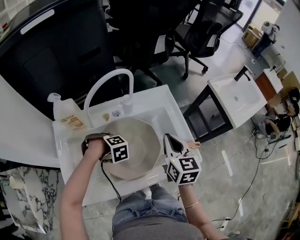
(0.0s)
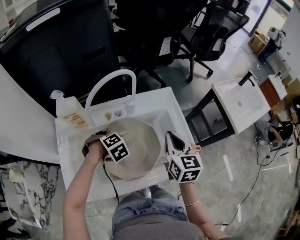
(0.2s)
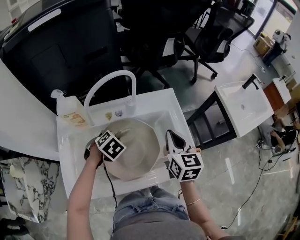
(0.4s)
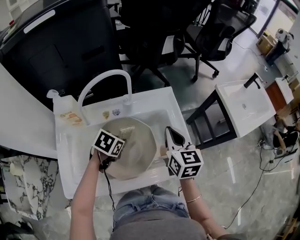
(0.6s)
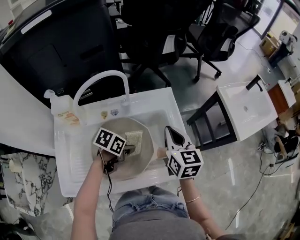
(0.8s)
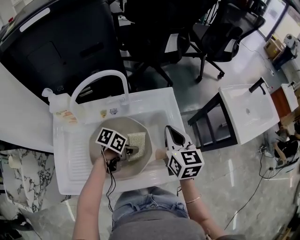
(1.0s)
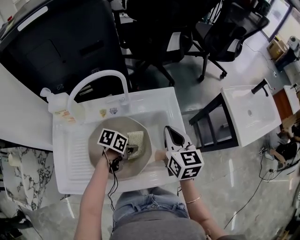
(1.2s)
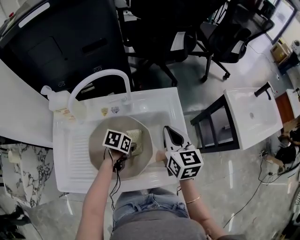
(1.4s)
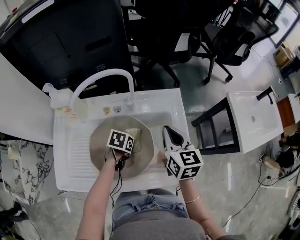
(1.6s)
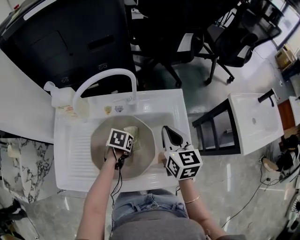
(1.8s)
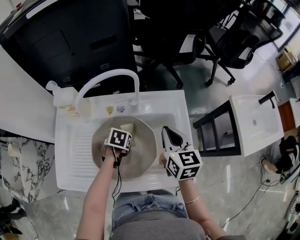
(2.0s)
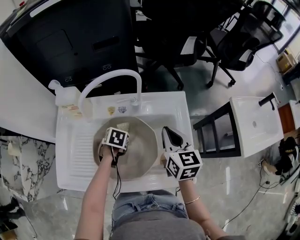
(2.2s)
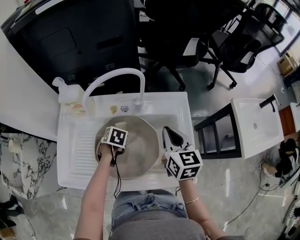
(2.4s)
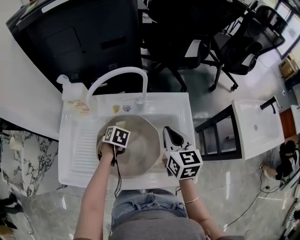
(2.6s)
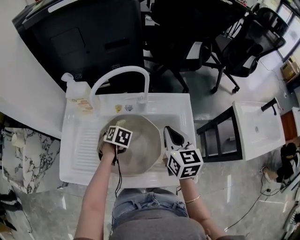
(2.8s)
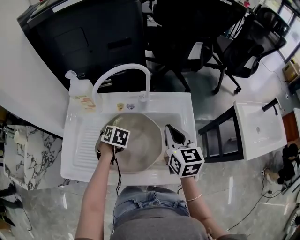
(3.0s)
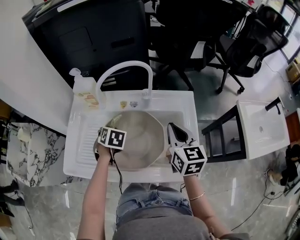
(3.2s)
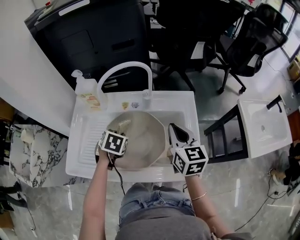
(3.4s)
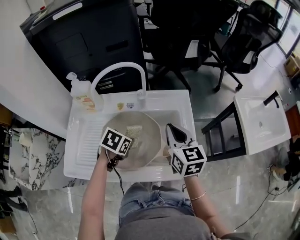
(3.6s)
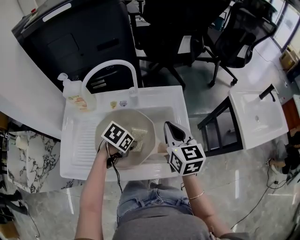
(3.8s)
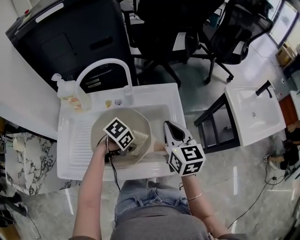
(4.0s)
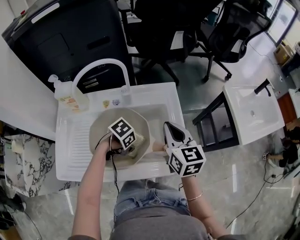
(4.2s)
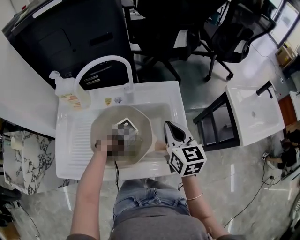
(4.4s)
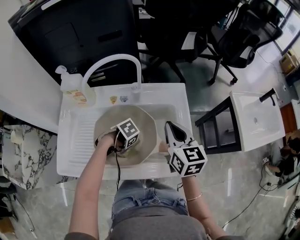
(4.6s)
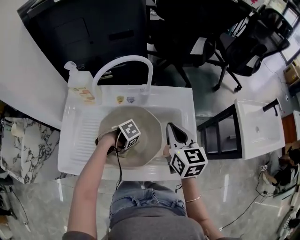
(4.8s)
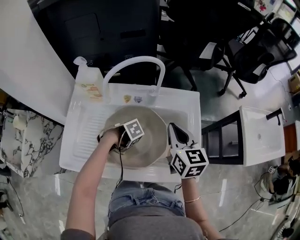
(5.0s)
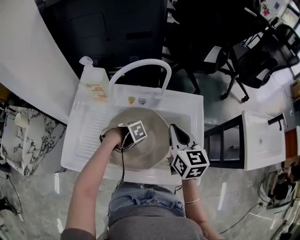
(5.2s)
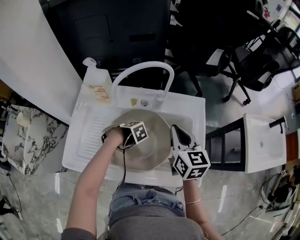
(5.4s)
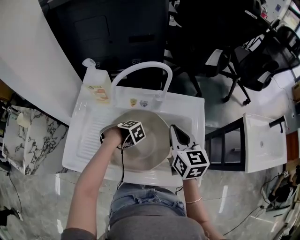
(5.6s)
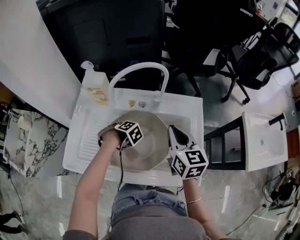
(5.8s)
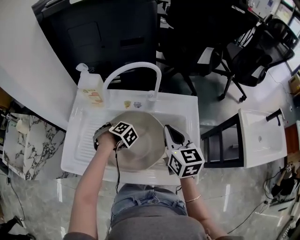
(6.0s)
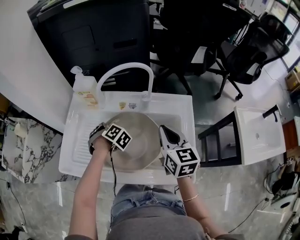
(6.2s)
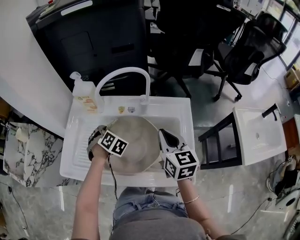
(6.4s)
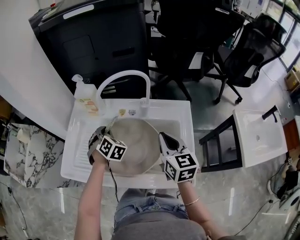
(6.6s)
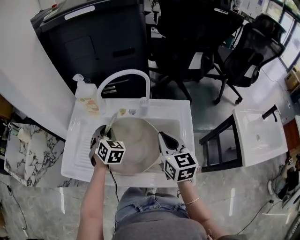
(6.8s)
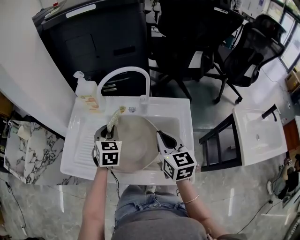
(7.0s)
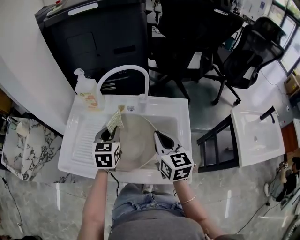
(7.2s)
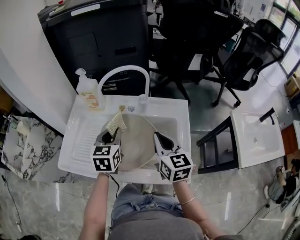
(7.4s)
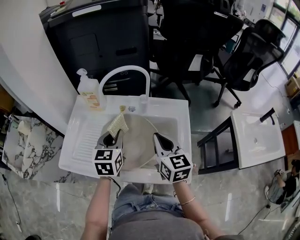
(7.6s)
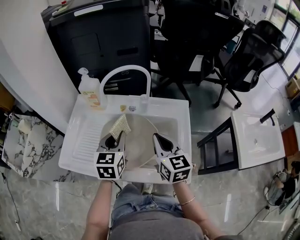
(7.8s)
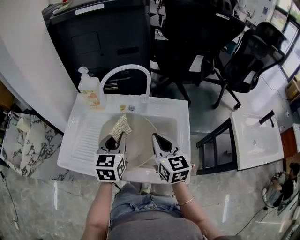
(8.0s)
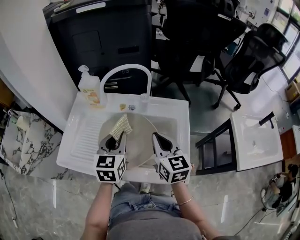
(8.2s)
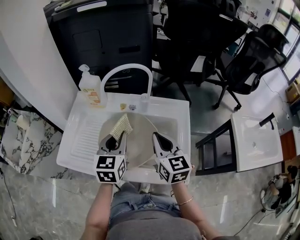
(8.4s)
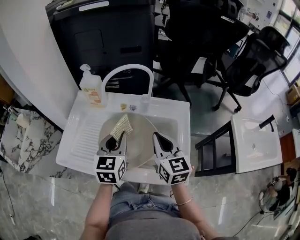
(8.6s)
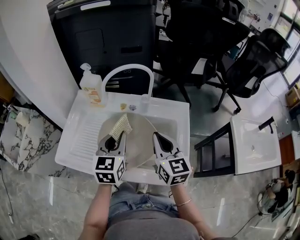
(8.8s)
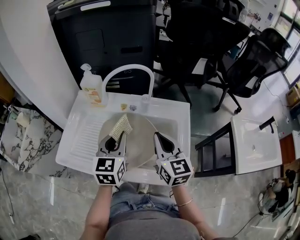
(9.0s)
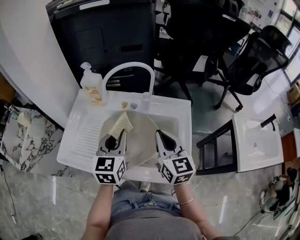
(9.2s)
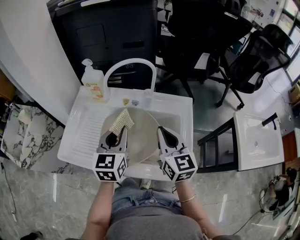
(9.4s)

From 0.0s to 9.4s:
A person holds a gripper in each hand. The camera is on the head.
From 0.0s to 1.6s: The left gripper changes place by roughly 15 cm, and rotates around the line of its fingers by roughly 80 degrees, counterclockwise from behind. The right gripper shifts by about 10 cm.
From 1.6s to 3.2s: The left gripper shifts by approximately 15 cm, and rotates roughly 40 degrees.
From 3.2s to 4.8s: The left gripper moves roughly 15 cm, and swivels some 60 degrees.
From 4.8s to 6.2s: The left gripper ends up approximately 15 cm from where it was, and changes its angle by approximately 50 degrees.
From 6.2s to 7.8s: The left gripper goes about 20 cm upward, backward and to the right, and tips its fingers upward by roughly 40 degrees.
From 7.8s to 9.4s: The grippers stay close to where they were, moving slightly.

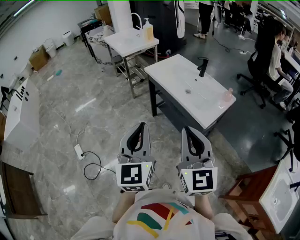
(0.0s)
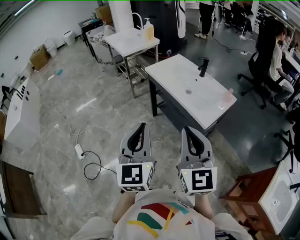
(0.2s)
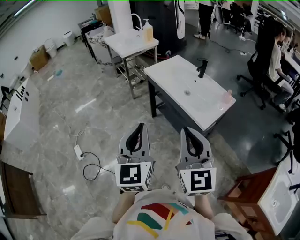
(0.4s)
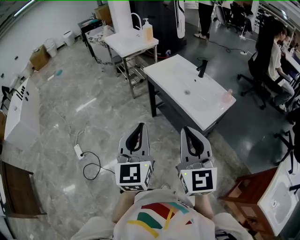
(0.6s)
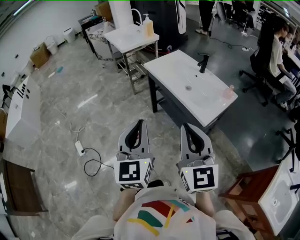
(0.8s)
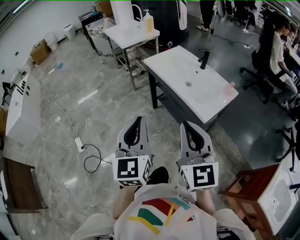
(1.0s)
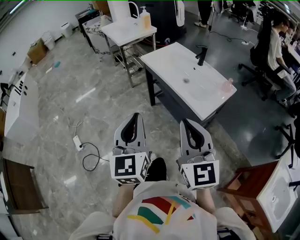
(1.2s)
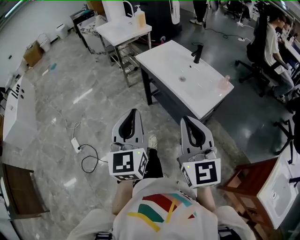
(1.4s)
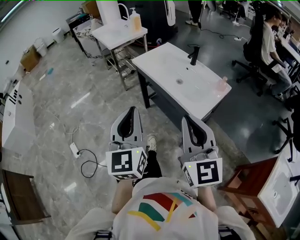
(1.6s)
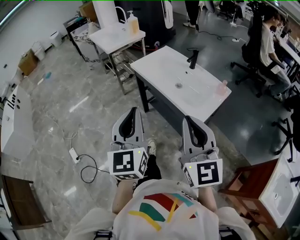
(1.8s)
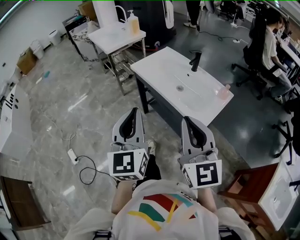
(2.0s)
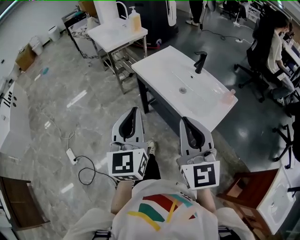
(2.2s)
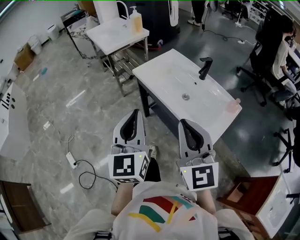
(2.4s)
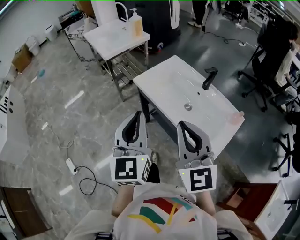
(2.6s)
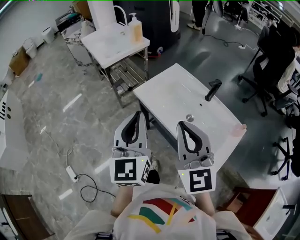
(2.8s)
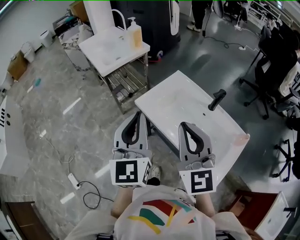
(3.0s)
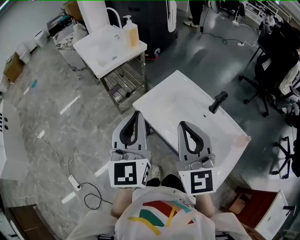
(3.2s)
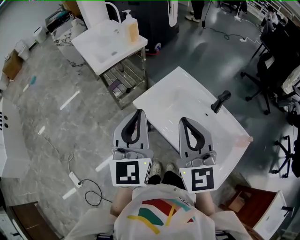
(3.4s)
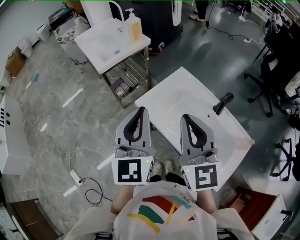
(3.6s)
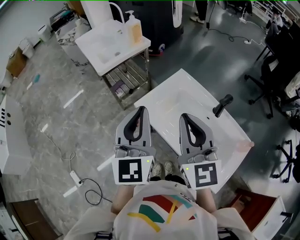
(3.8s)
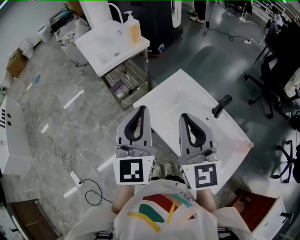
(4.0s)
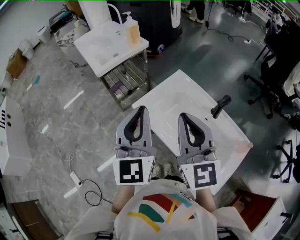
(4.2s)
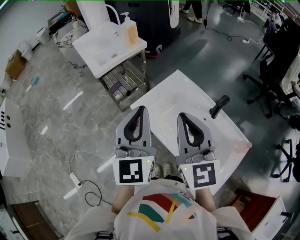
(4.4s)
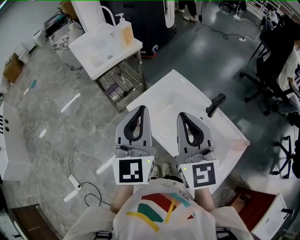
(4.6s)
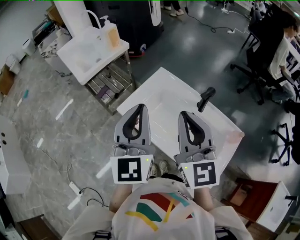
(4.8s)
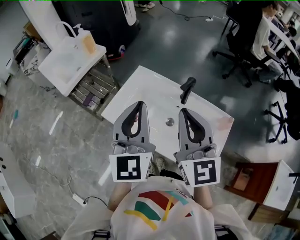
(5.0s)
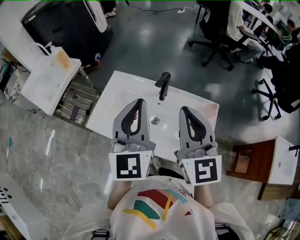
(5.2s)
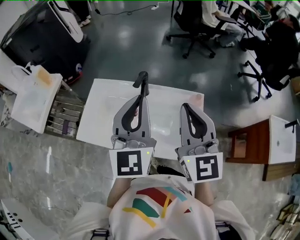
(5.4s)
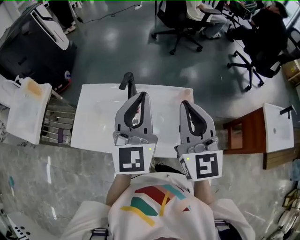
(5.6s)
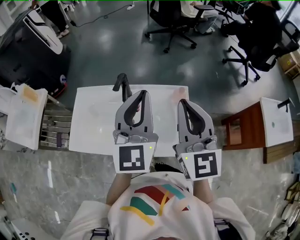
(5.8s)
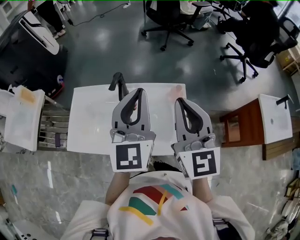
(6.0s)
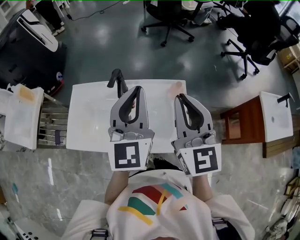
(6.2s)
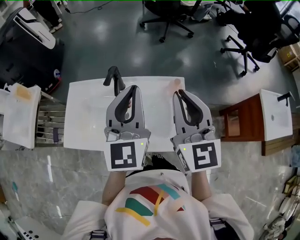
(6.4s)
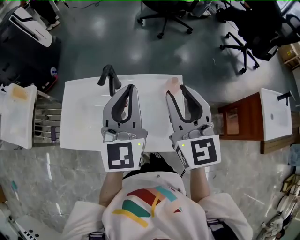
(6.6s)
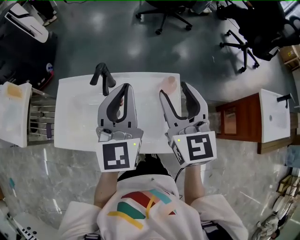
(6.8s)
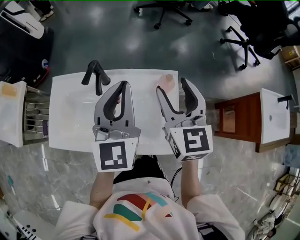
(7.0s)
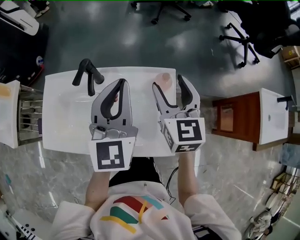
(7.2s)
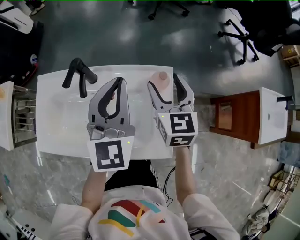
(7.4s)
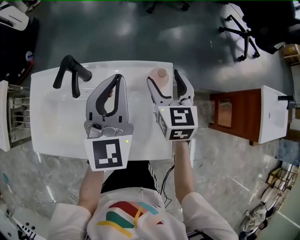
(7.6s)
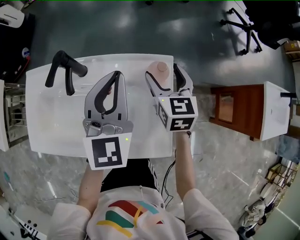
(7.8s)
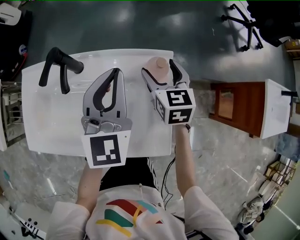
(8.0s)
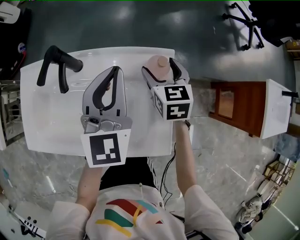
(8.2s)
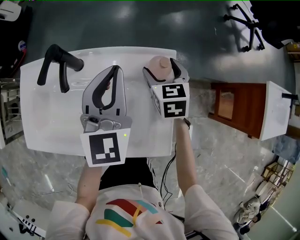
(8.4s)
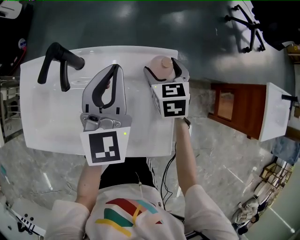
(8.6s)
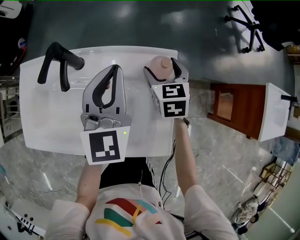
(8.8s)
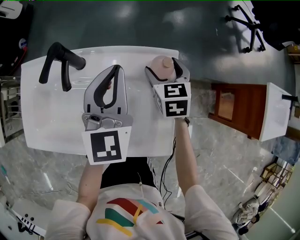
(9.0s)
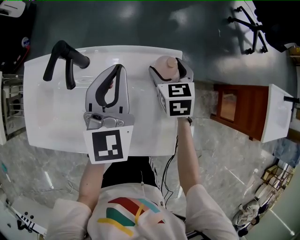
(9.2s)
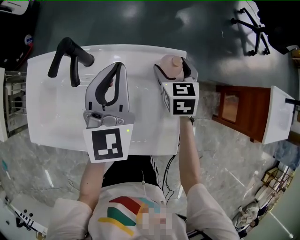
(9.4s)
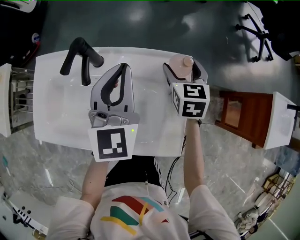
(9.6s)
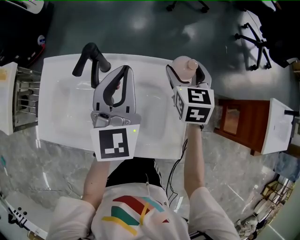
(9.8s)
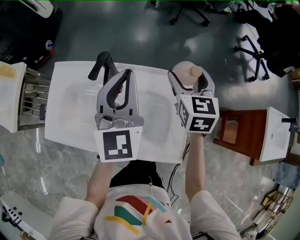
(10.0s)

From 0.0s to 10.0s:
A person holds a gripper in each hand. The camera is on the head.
From 0.0s to 1.4s: The grippers move only a little.
From 1.4s to 2.8s: The two grippers go approximately 35 cm forward.
From 2.8s to 4.2s: The two grippers go about 15 cm forward.
From 4.2s to 5.8s: The left gripper ends up some 35 cm from where it was, and changes its angle by approximately 50 degrees, while the right gripper ends up about 30 cm from where it was, and rotates roughly 50 degrees.
From 5.8s to 7.2s: The left gripper goes about 15 cm downward and forward, while the right gripper travels downward and forward by roughly 20 cm, and opens up.
From 7.2s to 8.6s: The left gripper travels downward by some 10 cm; the right gripper is displaced downward by approximately 20 cm, and swivels about 20 degrees.
From 8.6s to 10.0s: The left gripper shifts some 10 cm upward and to the left, while the right gripper is displaced upward by roughly 15 cm.

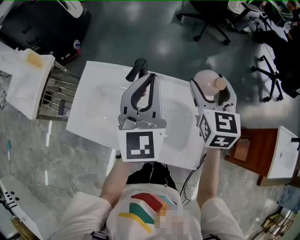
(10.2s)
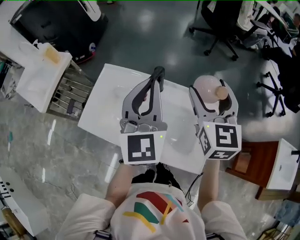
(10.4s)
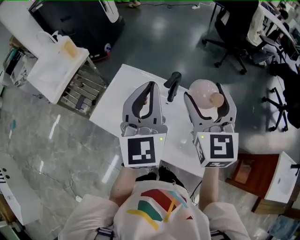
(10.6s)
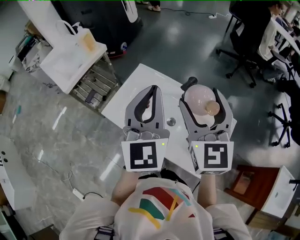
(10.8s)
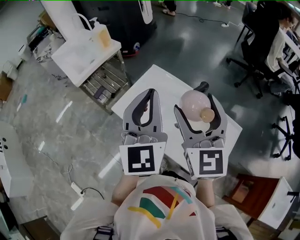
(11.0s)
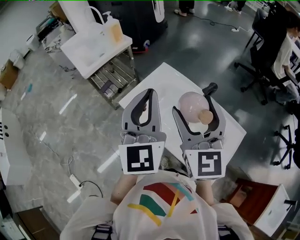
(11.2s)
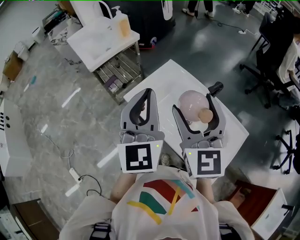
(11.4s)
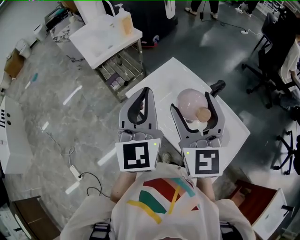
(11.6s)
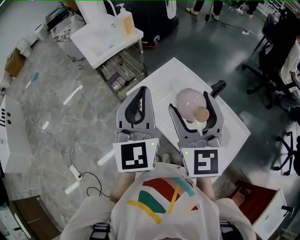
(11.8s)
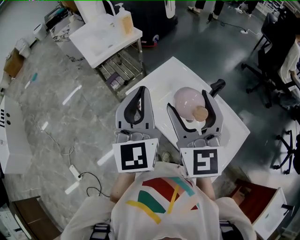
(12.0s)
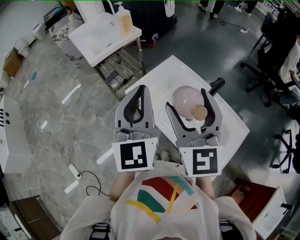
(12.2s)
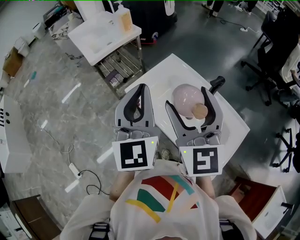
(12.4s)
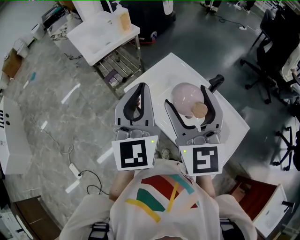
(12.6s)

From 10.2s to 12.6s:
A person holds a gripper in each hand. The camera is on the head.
From 10.2s to 11.4s: The right gripper changes place by some 35 cm, and changes its angle by about 40 degrees. Meanwhile the left gripper ends up about 30 cm from where it was, and turns by roughly 40 degrees.
From 11.4s to 12.6s: There are only small adjustments of the grippers.

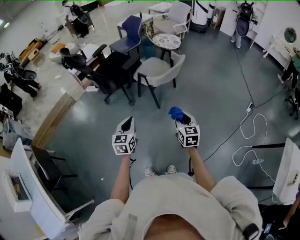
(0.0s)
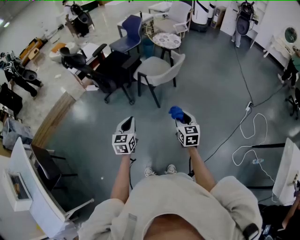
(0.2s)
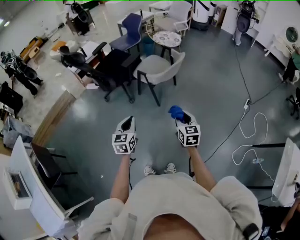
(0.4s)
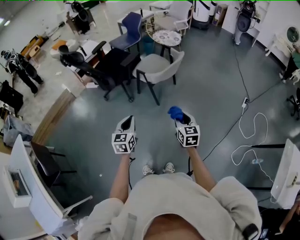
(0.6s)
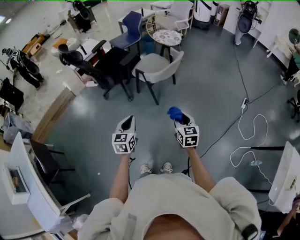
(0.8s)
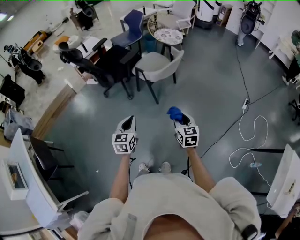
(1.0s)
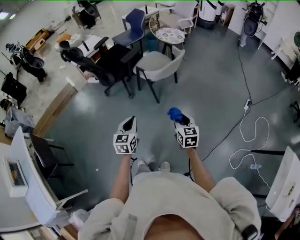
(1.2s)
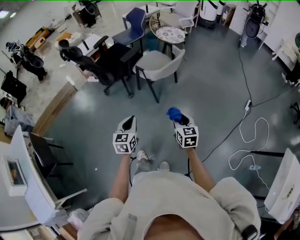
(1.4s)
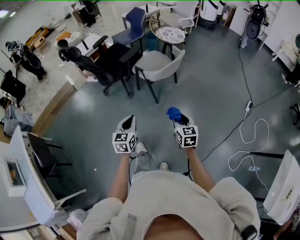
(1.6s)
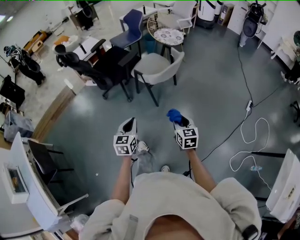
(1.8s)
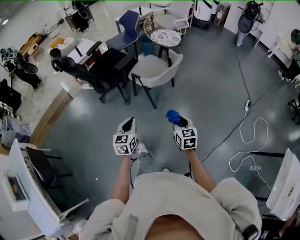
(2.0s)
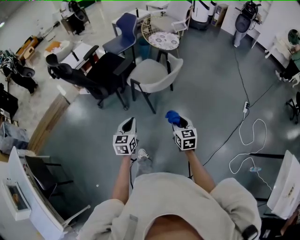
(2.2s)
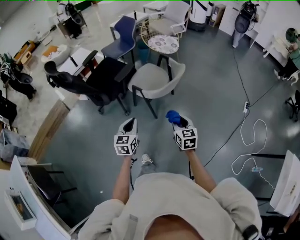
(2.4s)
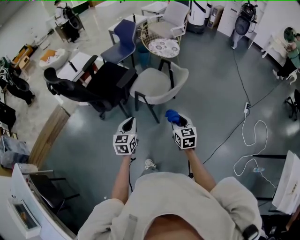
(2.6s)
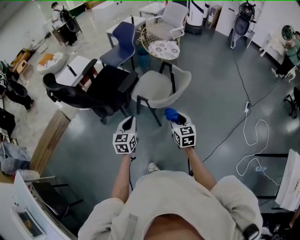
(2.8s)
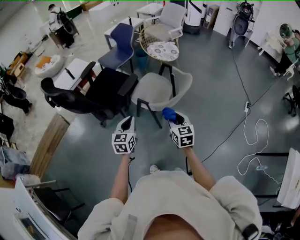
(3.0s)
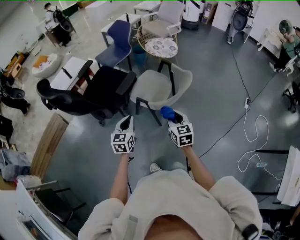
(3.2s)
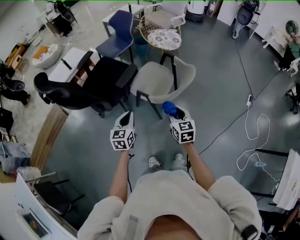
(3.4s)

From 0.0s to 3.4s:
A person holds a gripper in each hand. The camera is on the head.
From 0.0s to 1.6s: Both grippers travel together to the right, some 5 cm.
From 1.6s to 3.4s: The left gripper goes roughly 35 cm forward. Meanwhile the right gripper shifts some 35 cm forward and to the left.
